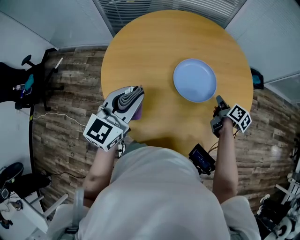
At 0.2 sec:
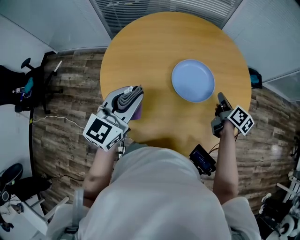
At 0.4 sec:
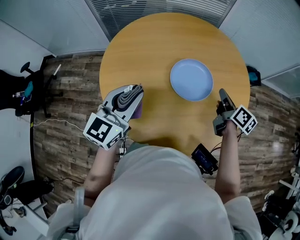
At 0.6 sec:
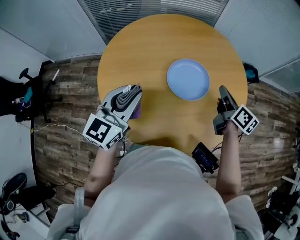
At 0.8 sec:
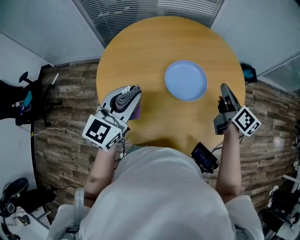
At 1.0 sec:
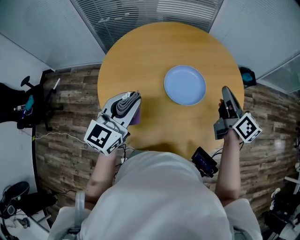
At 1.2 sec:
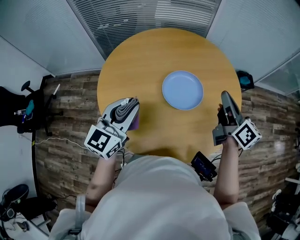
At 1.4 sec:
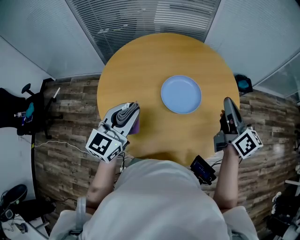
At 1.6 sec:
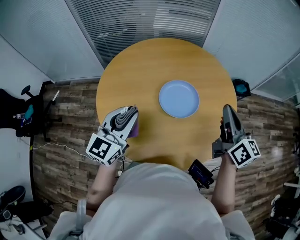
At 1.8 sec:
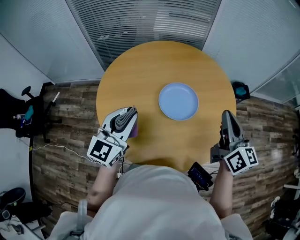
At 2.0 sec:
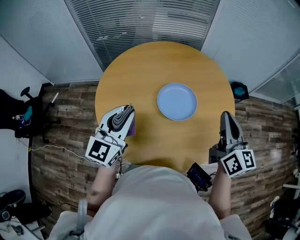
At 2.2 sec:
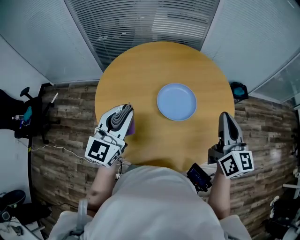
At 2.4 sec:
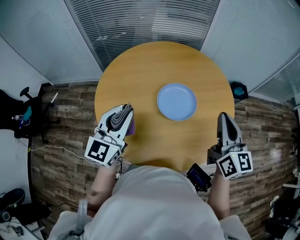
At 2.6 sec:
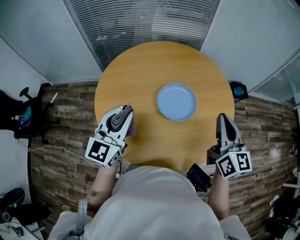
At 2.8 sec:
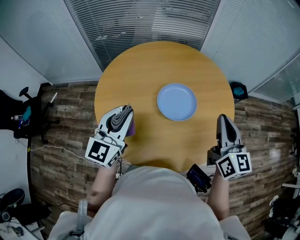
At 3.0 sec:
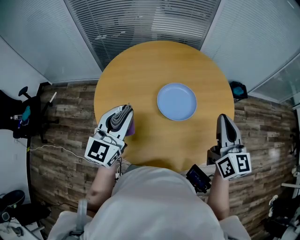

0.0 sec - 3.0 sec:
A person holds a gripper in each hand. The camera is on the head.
0.0 sec - 1.6 sec: The left gripper moves approximately 5 cm; the right gripper goes some 25 cm upward, and points its fingers about 30 degrees further upward.
1.6 sec - 3.0 sec: The grippers move only a little.

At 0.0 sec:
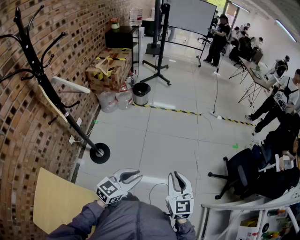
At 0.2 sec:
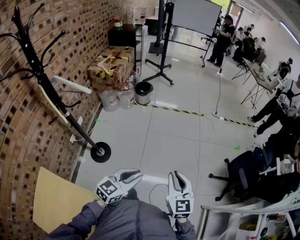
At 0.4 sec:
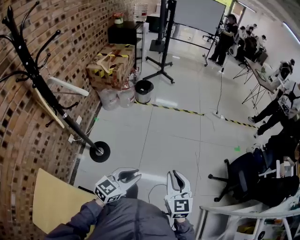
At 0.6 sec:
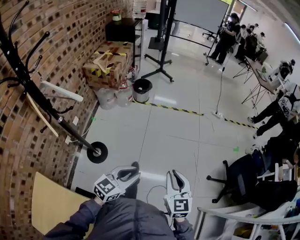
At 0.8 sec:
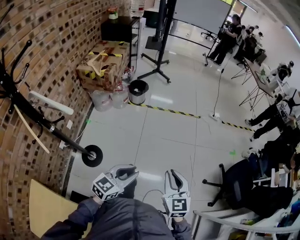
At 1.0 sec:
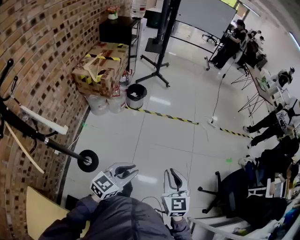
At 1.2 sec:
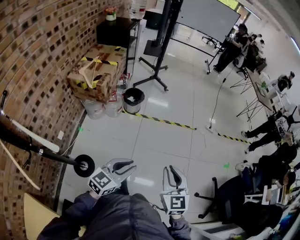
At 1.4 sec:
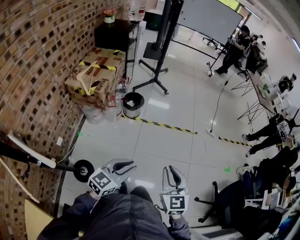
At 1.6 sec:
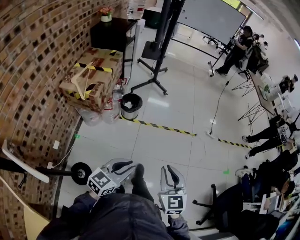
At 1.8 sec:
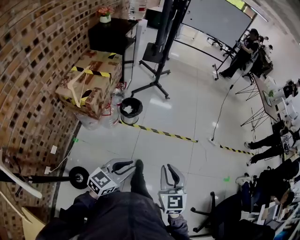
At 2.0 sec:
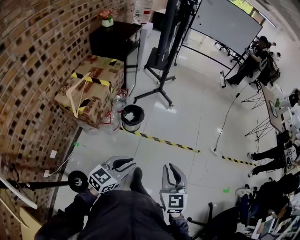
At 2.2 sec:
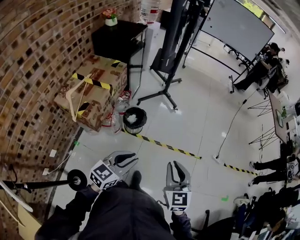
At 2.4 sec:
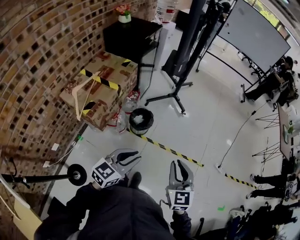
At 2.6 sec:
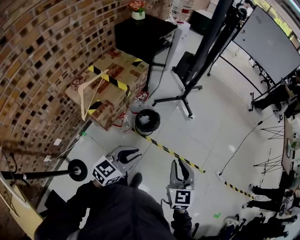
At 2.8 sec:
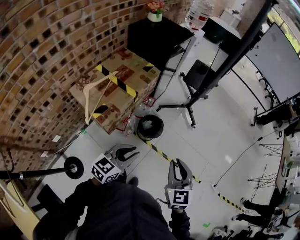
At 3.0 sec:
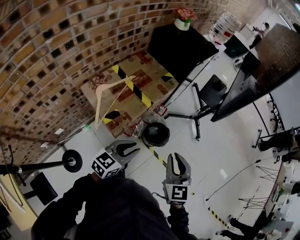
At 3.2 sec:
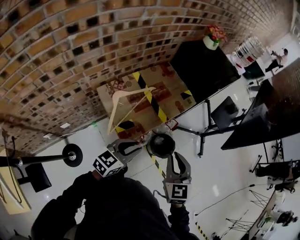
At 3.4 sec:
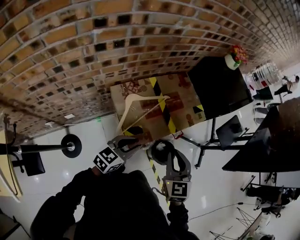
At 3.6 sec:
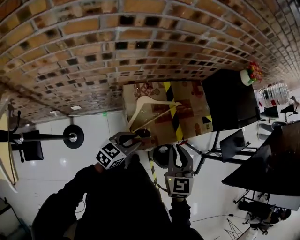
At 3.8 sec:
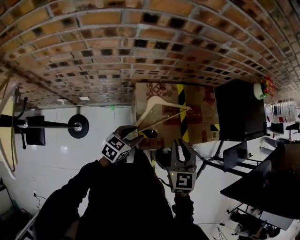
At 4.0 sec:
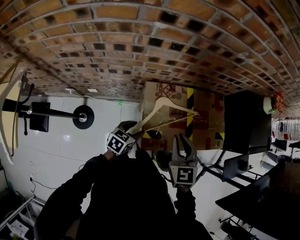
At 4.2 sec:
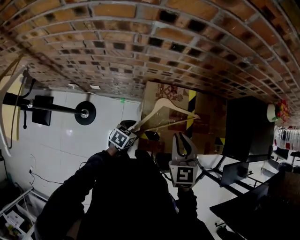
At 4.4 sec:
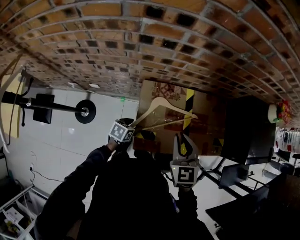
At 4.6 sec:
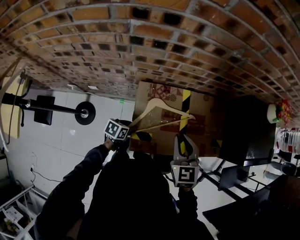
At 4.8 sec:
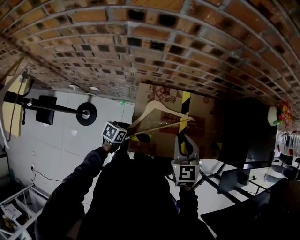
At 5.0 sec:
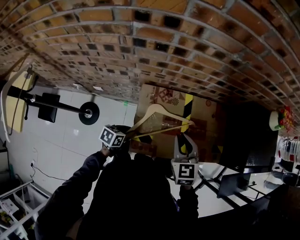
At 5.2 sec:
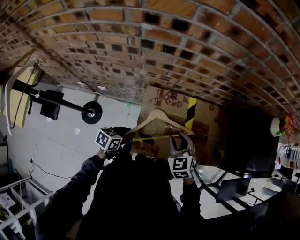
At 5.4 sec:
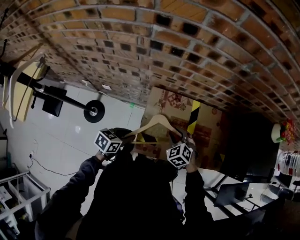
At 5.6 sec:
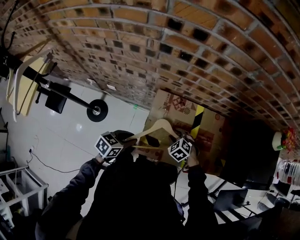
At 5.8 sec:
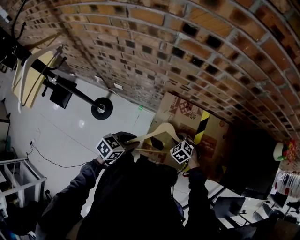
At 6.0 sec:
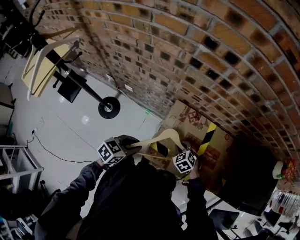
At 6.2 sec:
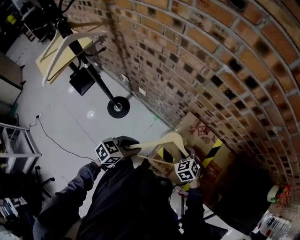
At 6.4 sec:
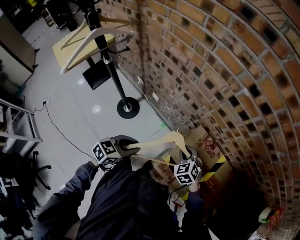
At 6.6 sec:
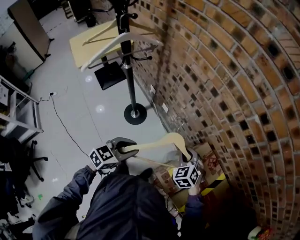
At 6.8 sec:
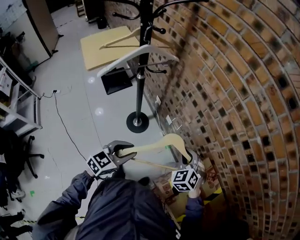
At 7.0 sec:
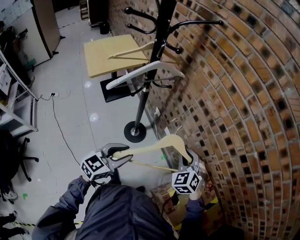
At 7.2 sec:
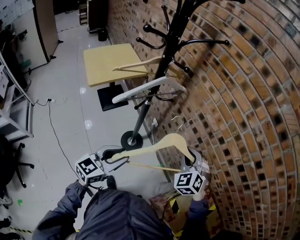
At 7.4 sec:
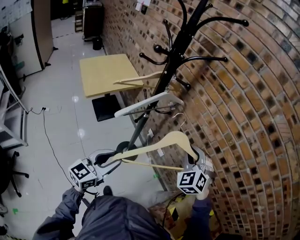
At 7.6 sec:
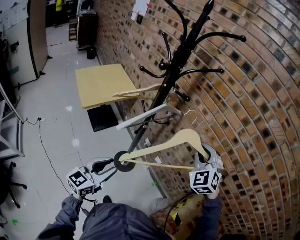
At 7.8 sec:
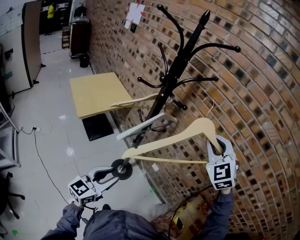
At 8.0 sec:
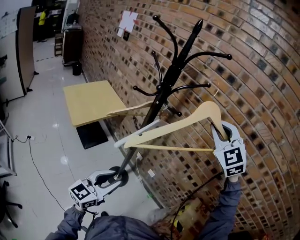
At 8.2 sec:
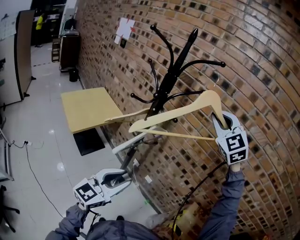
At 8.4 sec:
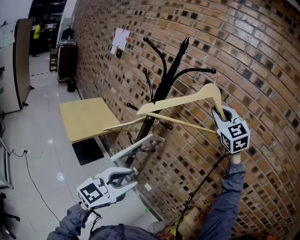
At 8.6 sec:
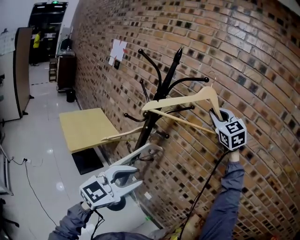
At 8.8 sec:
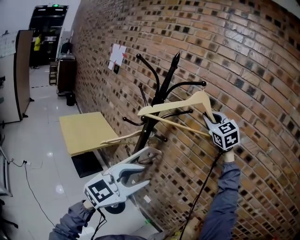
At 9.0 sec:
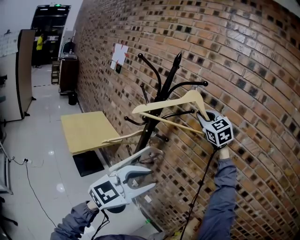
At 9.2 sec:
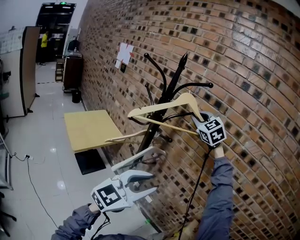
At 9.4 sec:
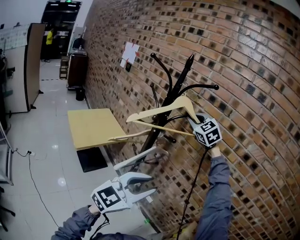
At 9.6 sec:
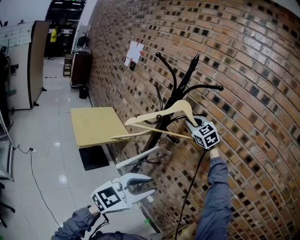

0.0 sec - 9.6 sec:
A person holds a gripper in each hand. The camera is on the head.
0.0 sec - 1.6 sec: Both grippers are carried forward, roughly 50 cm.
1.6 sec - 3.2 sec: The pair of grippers is taken some 60 cm. The right gripper swivels roughly 40 degrees. The left gripper turns by roughly 40 degrees.
3.2 sec - 4.8 sec: The left gripper goes approximately 20 cm downward, turns by some 60 degrees, and opens and closes again, while the right gripper shifts by about 30 cm, and turns by some 40 degrees.
4.8 sec - 6.4 sec: The right gripper ends up some 25 cm from where it was, swivels roughly 60 degrees, and opens, then closes once more; the left gripper changes place by approximately 25 cm, and rotates roughly 30 degrees.
6.4 sec - 8.0 sec: The left gripper heads to the left and upward, covering about 40 cm, and tips its fingers upward by approximately 40 degrees. The right gripper heads upward and to the left, covering approximately 60 cm, and angles its fingers upward, by about 40 degrees.
8.0 sec - 9.6 sec: The right gripper is displaced forward and to the left by about 20 cm. The left gripper travels upward and to the right by about 15 cm, and swivels approximately 20 degrees.

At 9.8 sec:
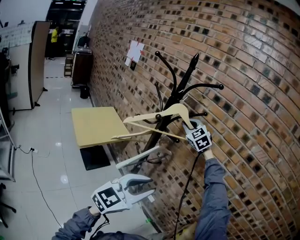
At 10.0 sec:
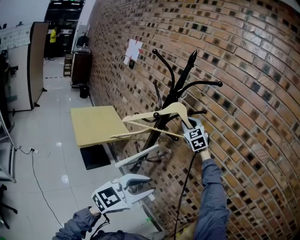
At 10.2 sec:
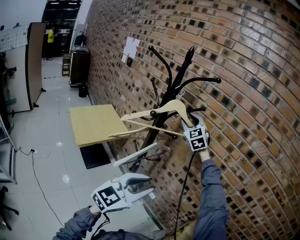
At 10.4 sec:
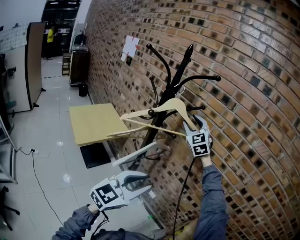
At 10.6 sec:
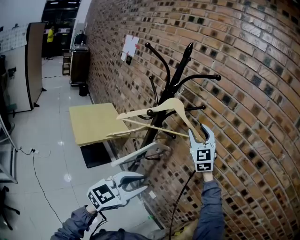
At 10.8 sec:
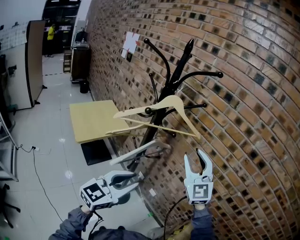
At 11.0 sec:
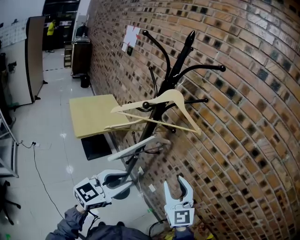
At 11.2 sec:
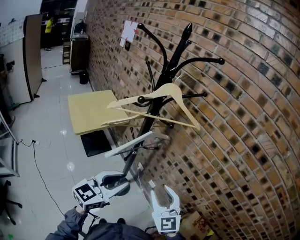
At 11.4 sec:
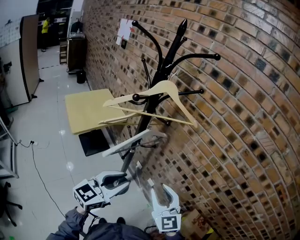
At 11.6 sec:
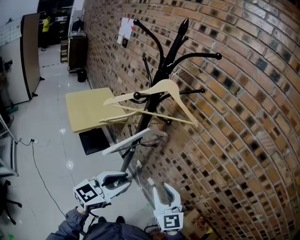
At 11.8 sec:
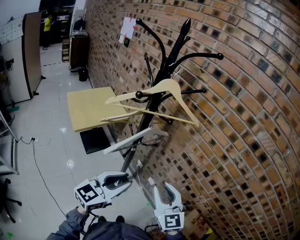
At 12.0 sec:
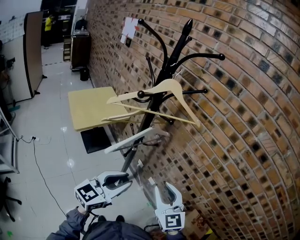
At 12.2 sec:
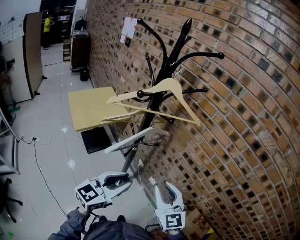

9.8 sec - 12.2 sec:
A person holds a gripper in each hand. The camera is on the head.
9.8 sec - 11.0 sec: The right gripper travels backward and downward by approximately 30 cm, rotates about 40 degrees, and opens its fingers. Meanwhile the left gripper shifts by roughly 5 cm.
11.0 sec - 12.2 sec: The right gripper shifts roughly 5 cm downward.

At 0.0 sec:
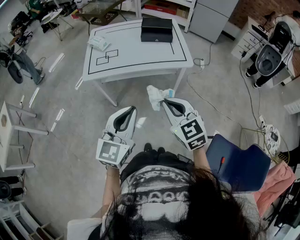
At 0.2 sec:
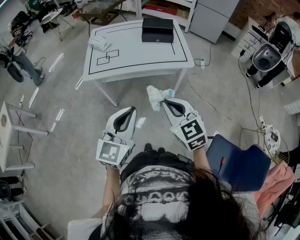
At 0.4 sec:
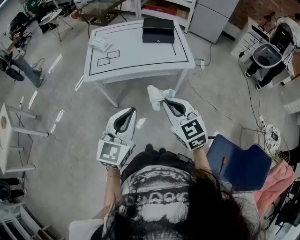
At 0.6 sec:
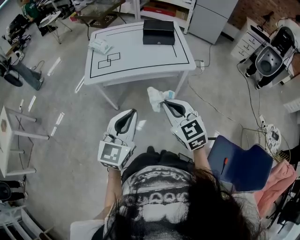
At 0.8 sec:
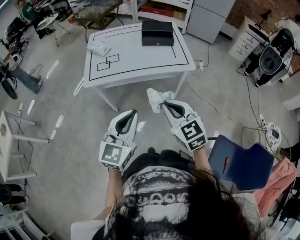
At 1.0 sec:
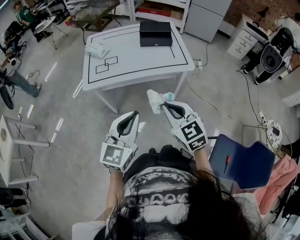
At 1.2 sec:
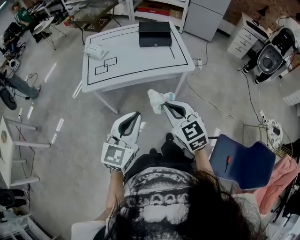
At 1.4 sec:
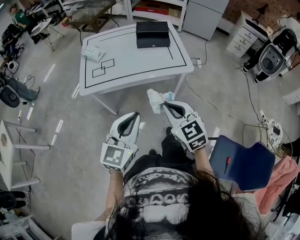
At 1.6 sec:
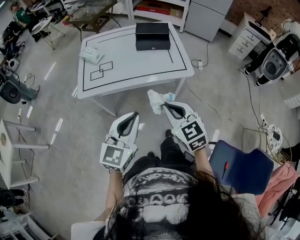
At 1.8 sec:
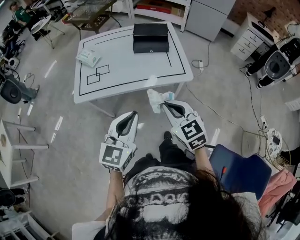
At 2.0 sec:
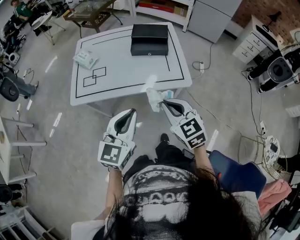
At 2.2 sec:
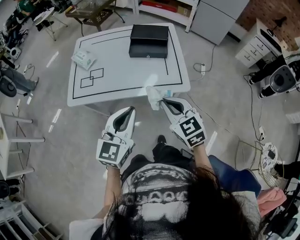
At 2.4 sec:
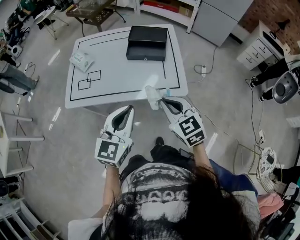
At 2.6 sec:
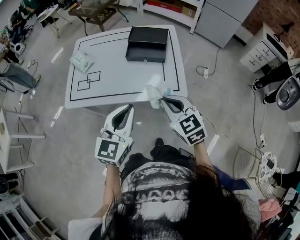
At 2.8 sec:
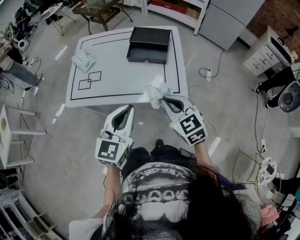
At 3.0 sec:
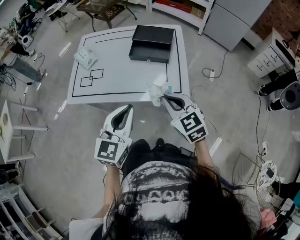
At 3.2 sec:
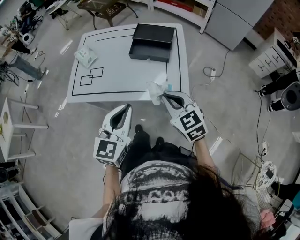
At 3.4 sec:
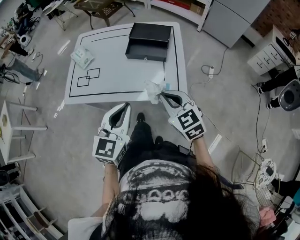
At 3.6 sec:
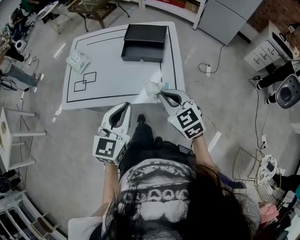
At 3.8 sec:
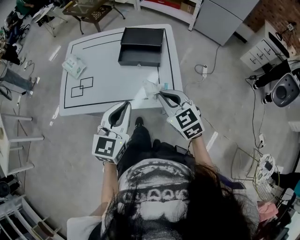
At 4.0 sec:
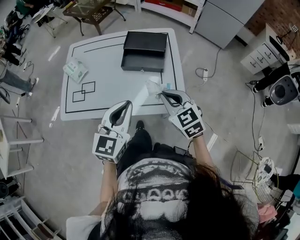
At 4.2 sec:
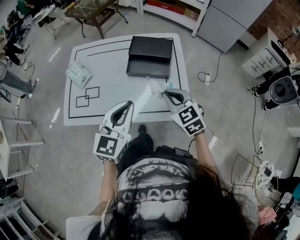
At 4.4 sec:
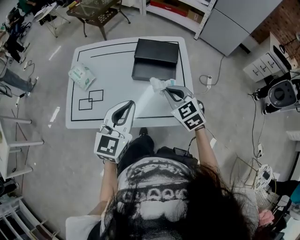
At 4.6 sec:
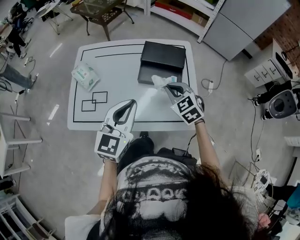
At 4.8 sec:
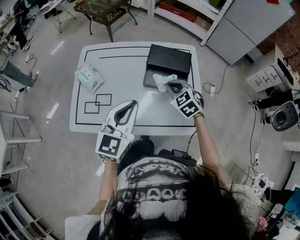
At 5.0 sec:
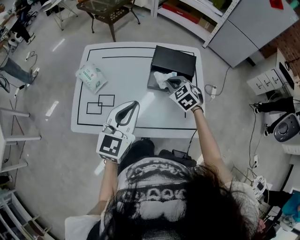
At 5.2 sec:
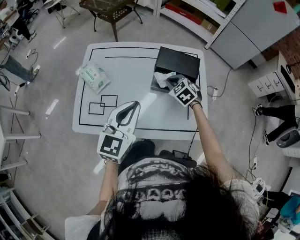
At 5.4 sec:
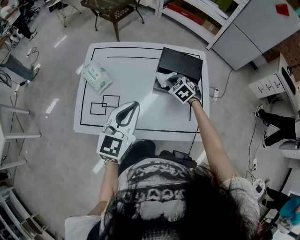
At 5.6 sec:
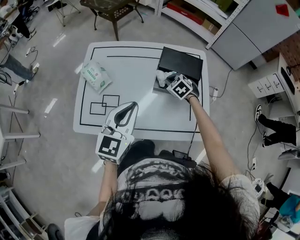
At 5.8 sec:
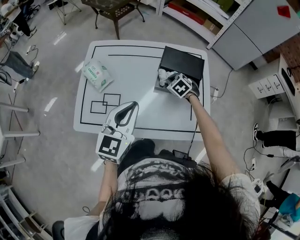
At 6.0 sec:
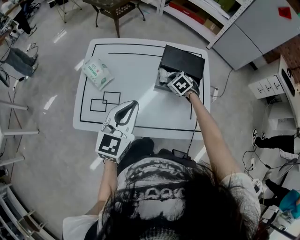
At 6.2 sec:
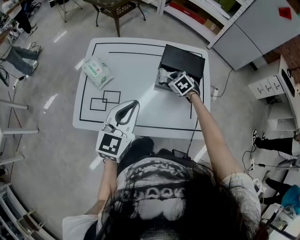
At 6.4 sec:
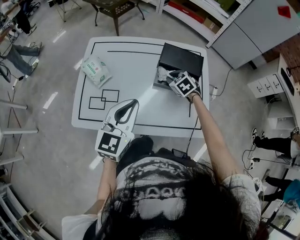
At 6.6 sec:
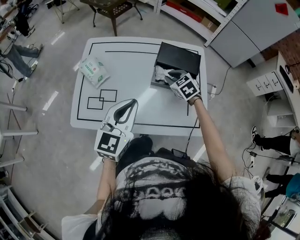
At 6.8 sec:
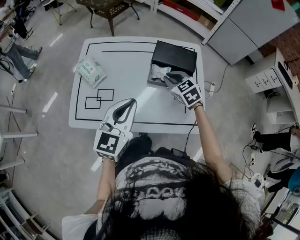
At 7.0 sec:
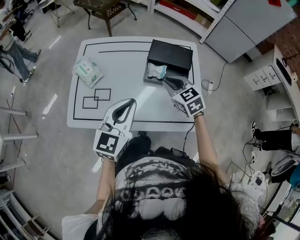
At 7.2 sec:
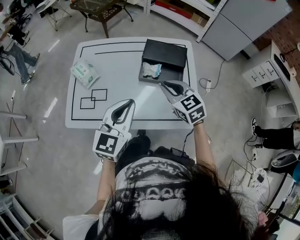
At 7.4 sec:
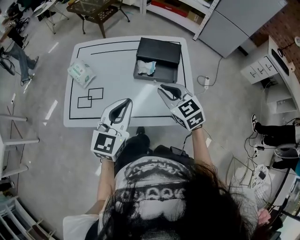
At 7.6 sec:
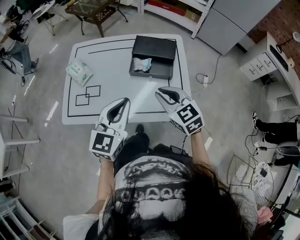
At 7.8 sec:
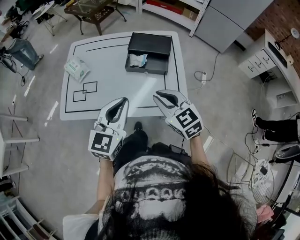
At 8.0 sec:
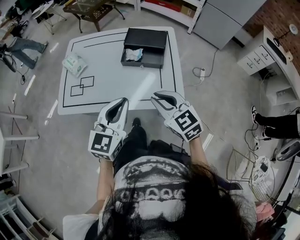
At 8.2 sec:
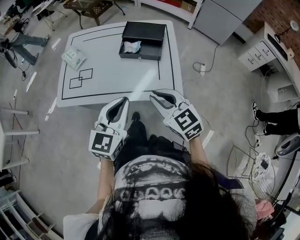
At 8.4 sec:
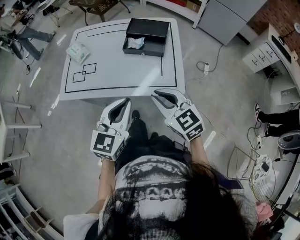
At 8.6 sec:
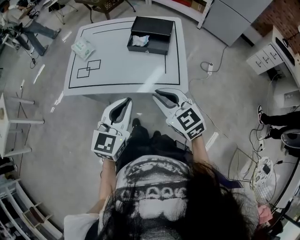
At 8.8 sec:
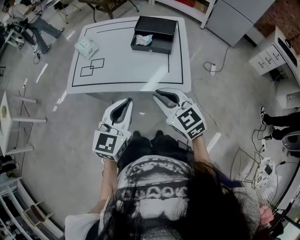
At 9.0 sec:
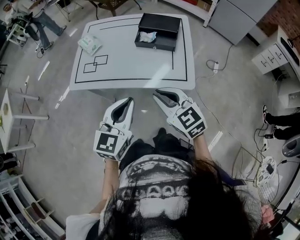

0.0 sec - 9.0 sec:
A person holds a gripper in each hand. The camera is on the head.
0.0 sec - 1.6 sec: Both grippers travel together forward, approximately 10 cm.
1.6 sec - 3.0 sec: Both grippers move forward and to the right, approximately 25 cm.
3.0 sec - 4.4 sec: The grippers both shift forward by some 20 cm.
4.4 sec - 6.0 sec: The right gripper shifts approximately 30 cm forward, downward and to the left, and rotates roughly 30 degrees. Meanwhile the left gripper moves to the left and forward, approximately 15 cm.
6.0 sec - 7.6 sec: The left gripper heads to the right and backward, covering roughly 15 cm. Meanwhile the right gripper shifts roughly 30 cm backward and upward, and tips its fingers upward by about 30 degrees.
7.6 sec - 9.0 sec: The two grippers go roughly 20 cm backward.
